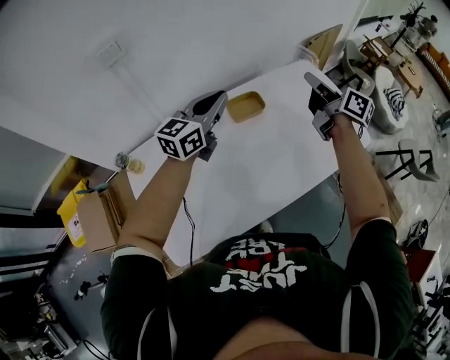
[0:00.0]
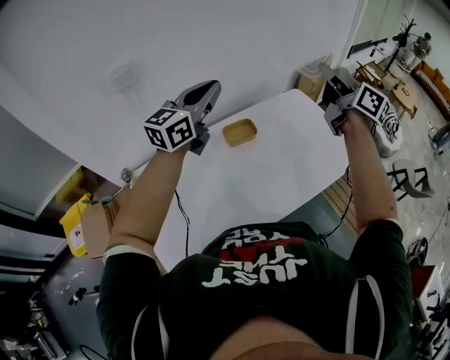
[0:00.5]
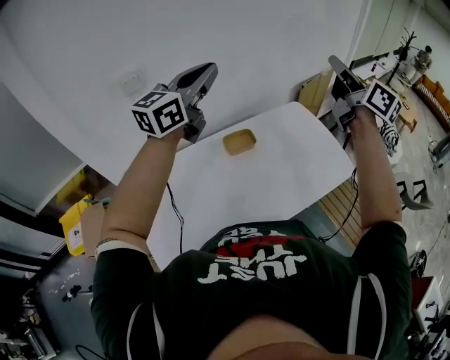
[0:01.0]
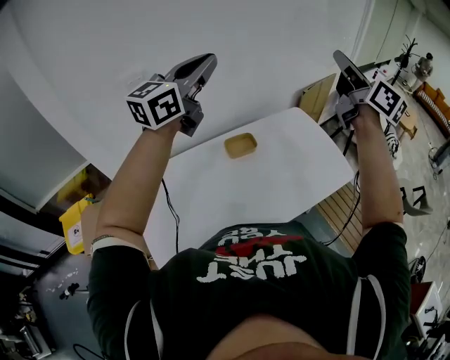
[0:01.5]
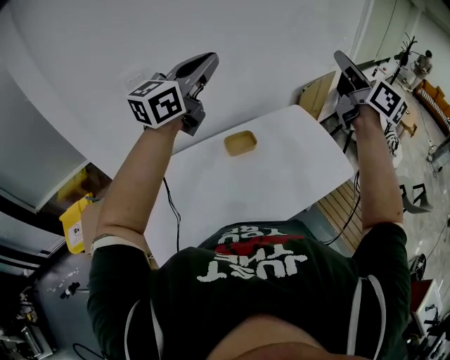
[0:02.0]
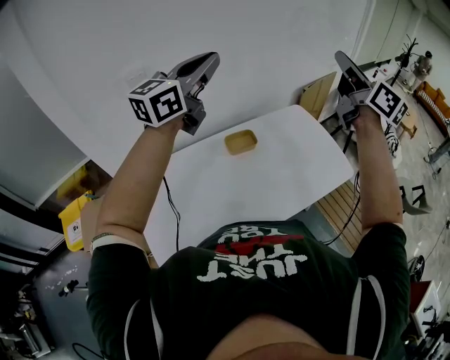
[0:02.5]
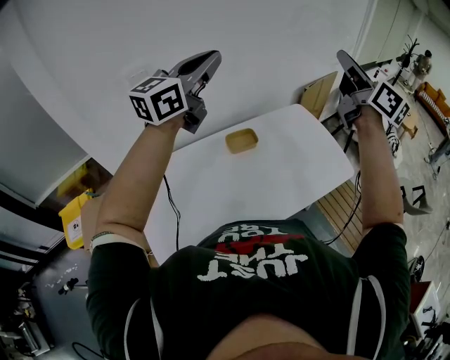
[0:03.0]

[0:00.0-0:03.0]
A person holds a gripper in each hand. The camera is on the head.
0:00.0 to 0:01.5: Both grippers travel together upward, approximately 30 cm. The right gripper swivels about 30 degrees.
0:01.5 to 0:03.0: Both grippers stay about where they are.

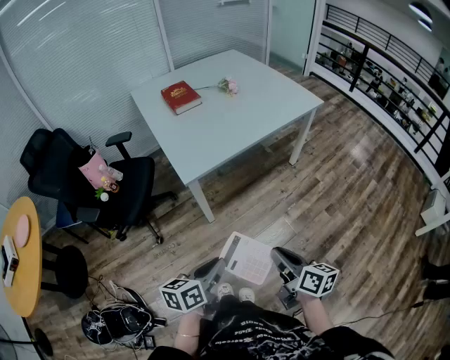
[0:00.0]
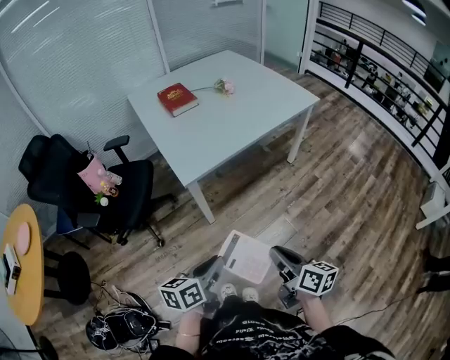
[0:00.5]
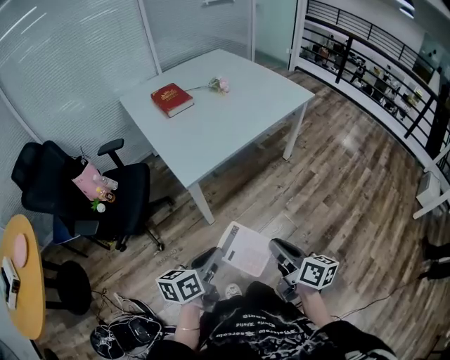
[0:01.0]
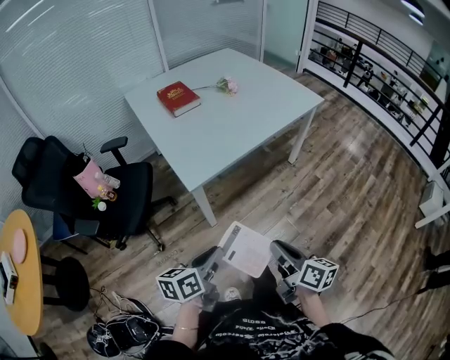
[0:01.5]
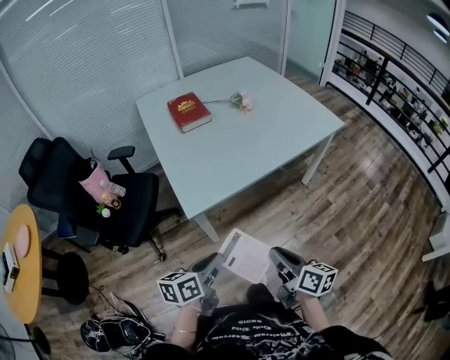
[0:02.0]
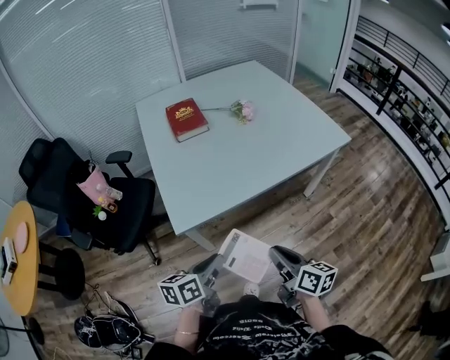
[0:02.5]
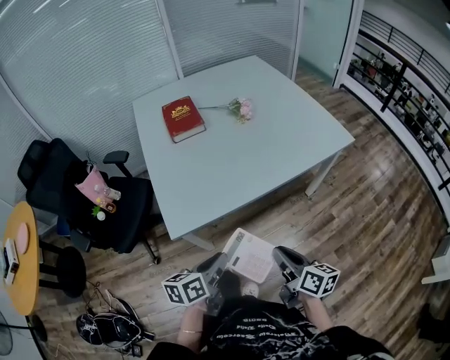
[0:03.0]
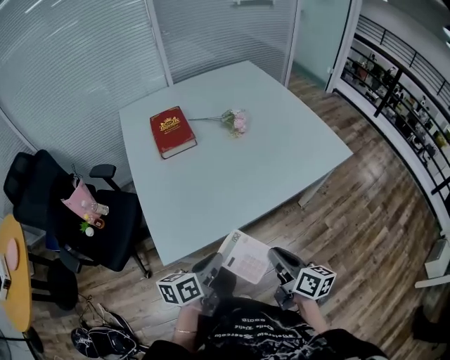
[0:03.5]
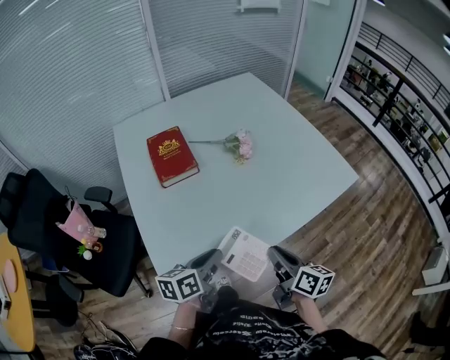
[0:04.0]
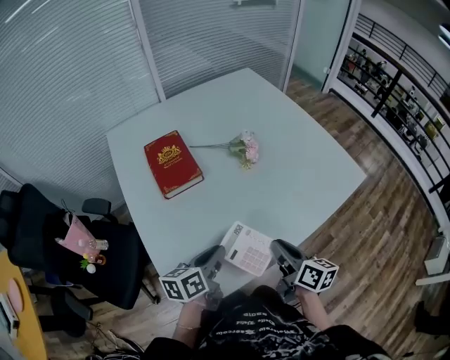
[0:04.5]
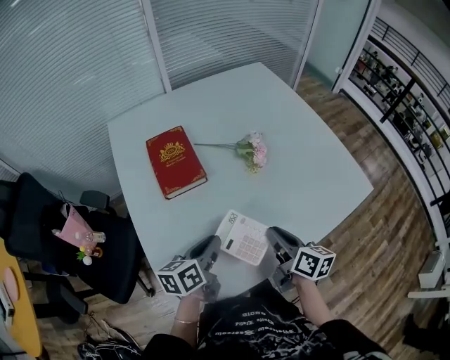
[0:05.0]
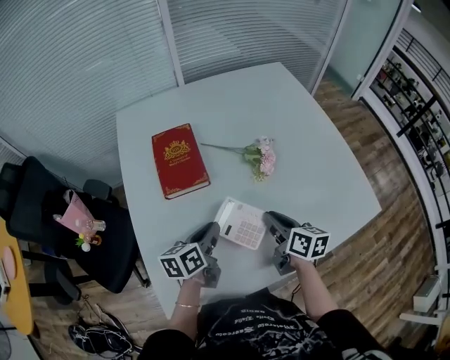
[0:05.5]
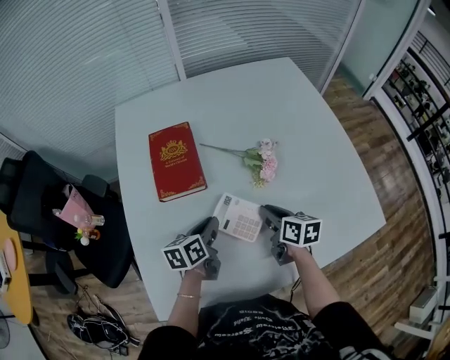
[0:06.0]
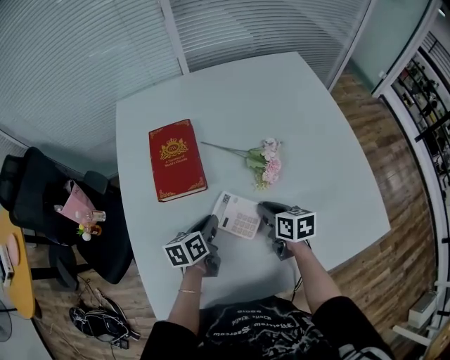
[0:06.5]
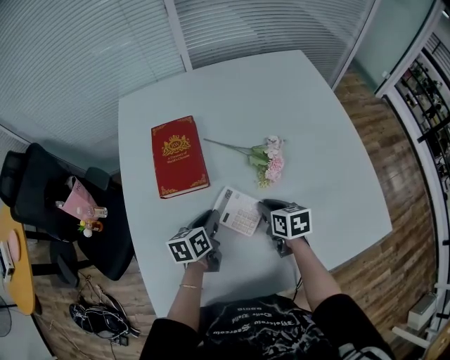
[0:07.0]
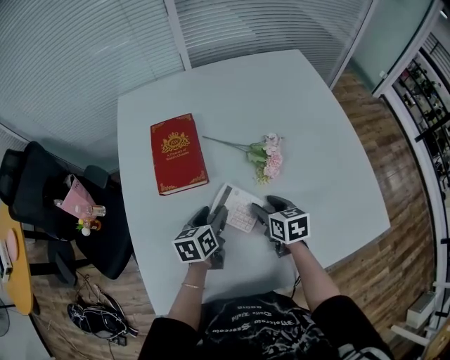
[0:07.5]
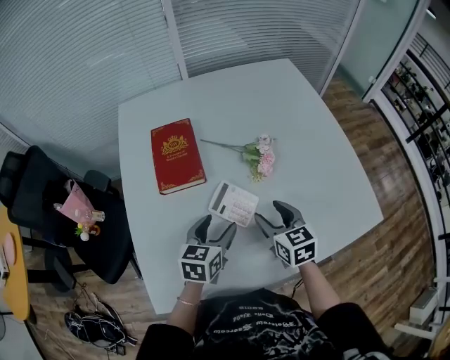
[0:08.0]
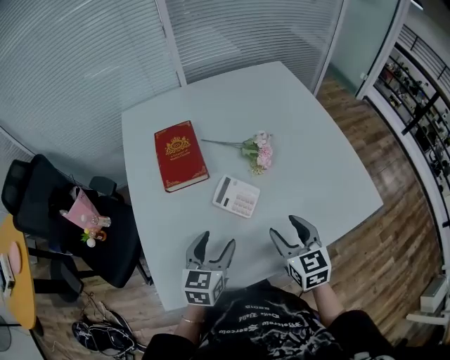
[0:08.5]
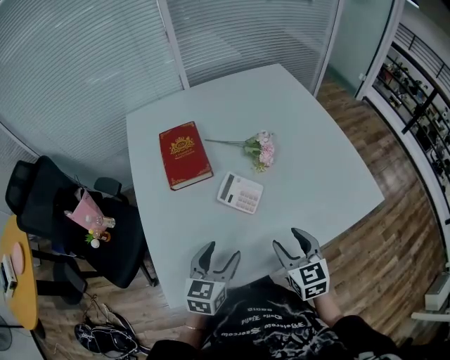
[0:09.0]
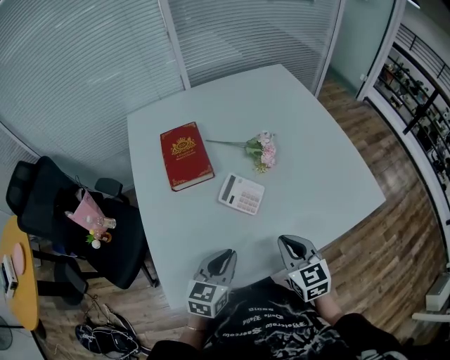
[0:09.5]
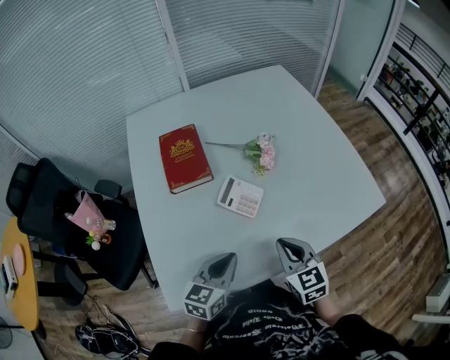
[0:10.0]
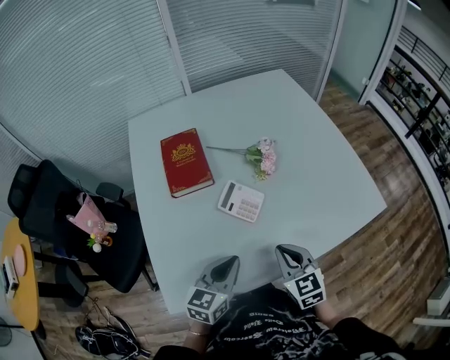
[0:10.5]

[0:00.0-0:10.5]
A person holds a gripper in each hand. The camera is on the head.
0:00.0 to 0:02.0: Both grippers travel together forward, about 20 cm.
0:02.0 to 0:04.0: The two grippers go about 35 cm forward.
0:04.0 to 0:06.5: Both grippers travel together forward, roughly 30 cm. The left gripper changes its angle by approximately 30 degrees. Meanwhile the right gripper changes its angle by approximately 40 degrees.
0:06.5 to 0:08.5: The two grippers go approximately 20 cm backward and upward. The right gripper swivels roughly 30 degrees, and opens; the left gripper swivels roughly 40 degrees, and opens up.
0:08.5 to 0:10.5: The two grippers go approximately 5 cm backward. The left gripper closes its fingers, while the right gripper closes its fingers.

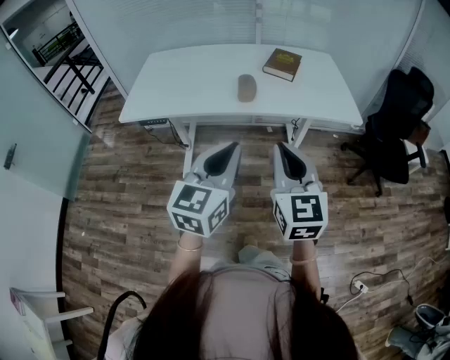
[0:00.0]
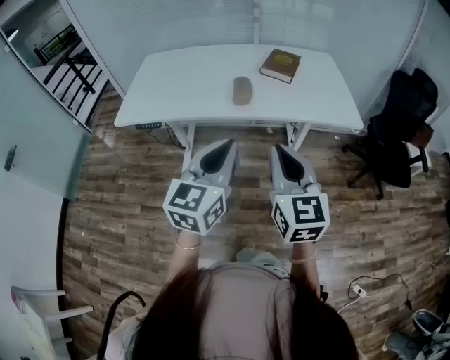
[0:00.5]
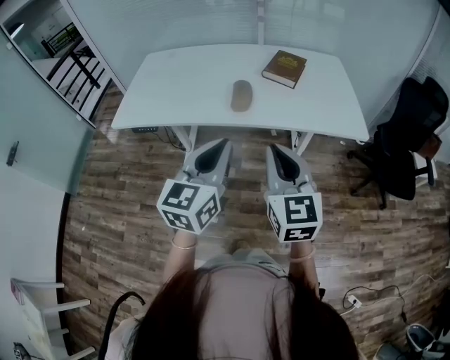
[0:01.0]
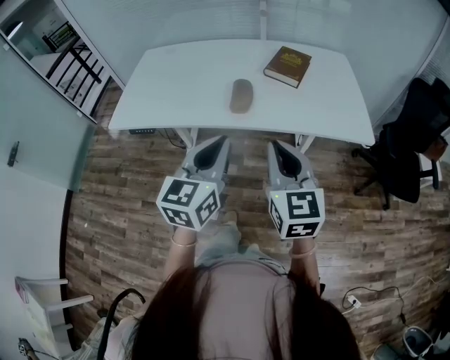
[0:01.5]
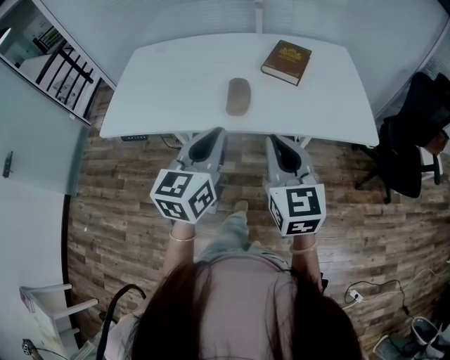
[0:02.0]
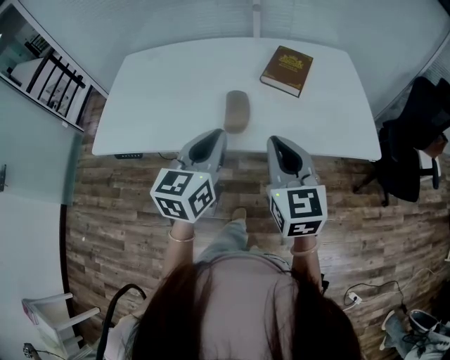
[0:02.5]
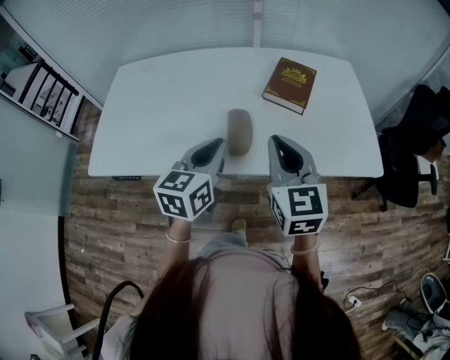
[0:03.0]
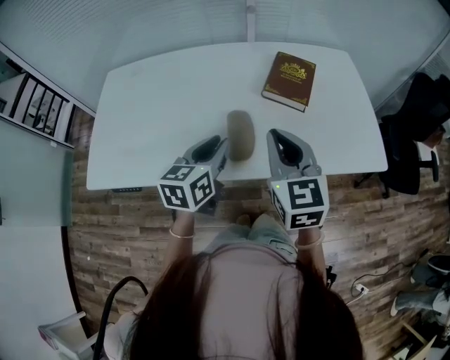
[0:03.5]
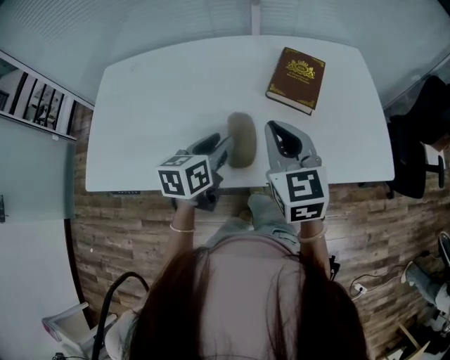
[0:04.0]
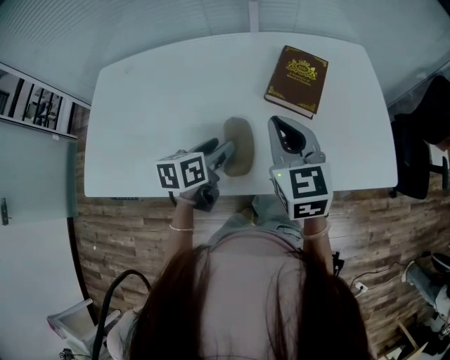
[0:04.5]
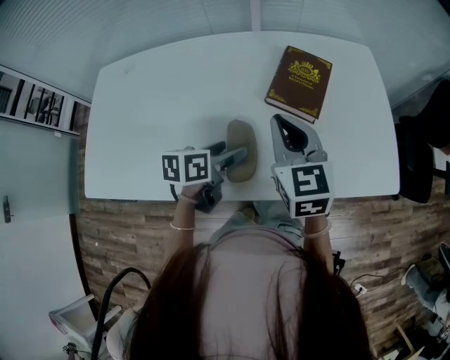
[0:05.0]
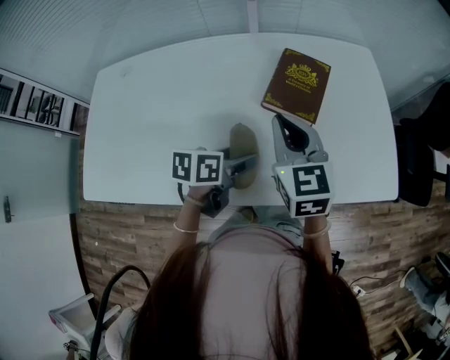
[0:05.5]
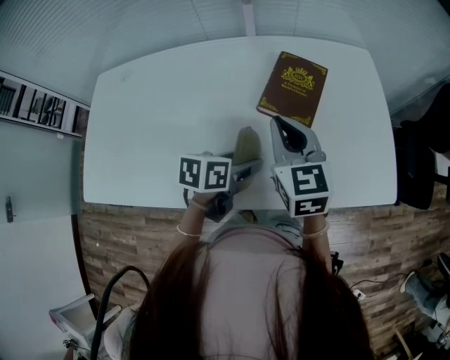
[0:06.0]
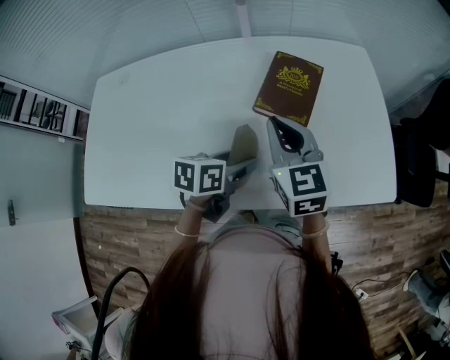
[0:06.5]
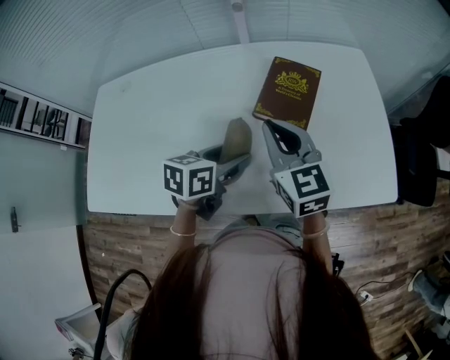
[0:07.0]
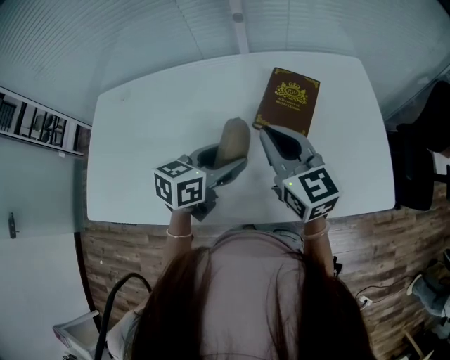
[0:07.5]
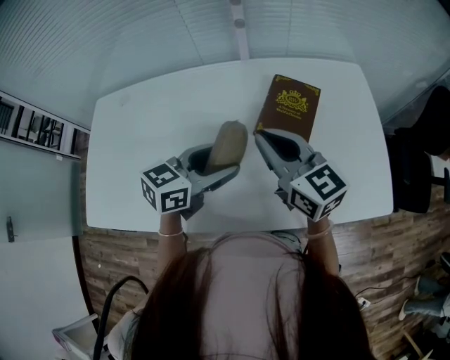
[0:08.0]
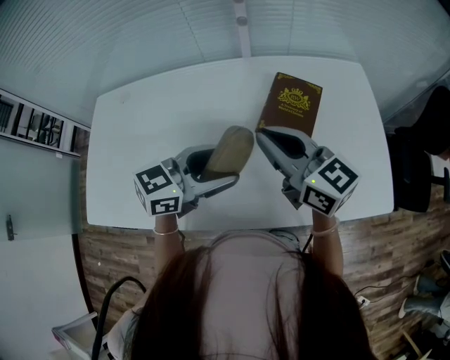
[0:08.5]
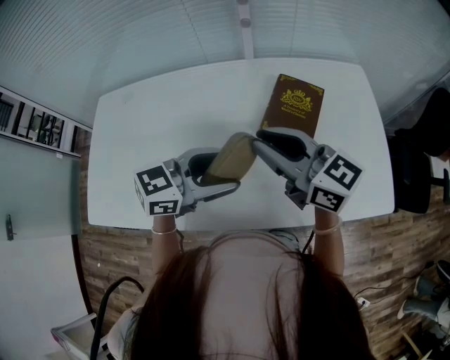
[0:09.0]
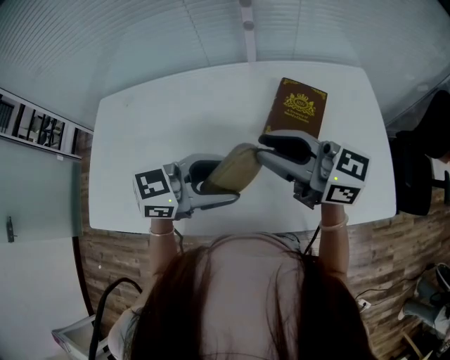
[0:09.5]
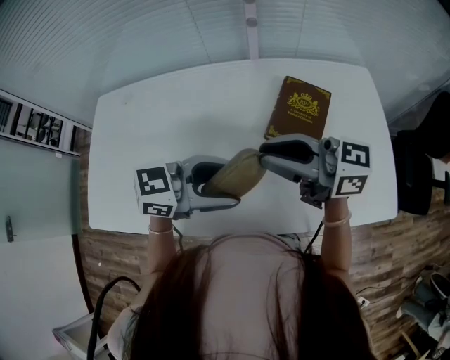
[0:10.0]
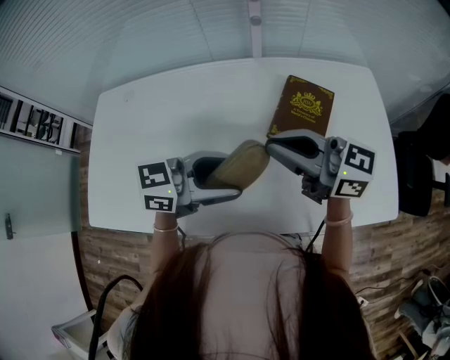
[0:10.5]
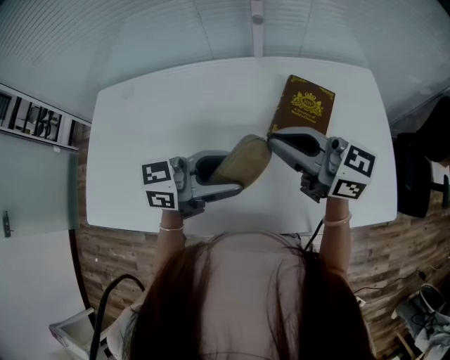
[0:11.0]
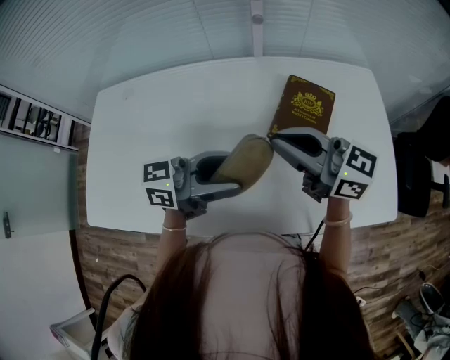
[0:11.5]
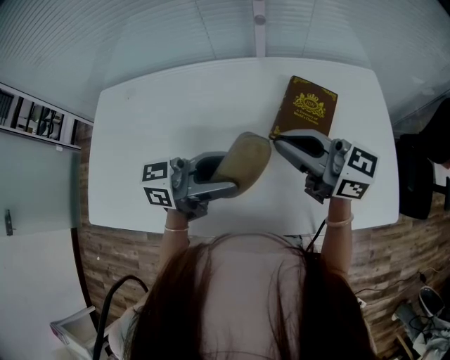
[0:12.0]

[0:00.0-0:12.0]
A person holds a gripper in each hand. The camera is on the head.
0:00.0 to 0:02.0: Both grippers travel together forward, about 20 cm.
0:02.0 to 0:04.0: The right gripper shifts about 25 cm forward; the left gripper travels forward and downward by some 30 cm, swivels some 30 degrees, and opens.
0:04.0 to 0:06.0: The left gripper moves to the right and downward, some 10 cm, rotates about 30 degrees, and opens its fingers. The right gripper moves forward, some 10 cm.
0:06.0 to 0:08.0: The right gripper changes place by roughly 5 cm, and swivels about 20 degrees. The left gripper moves upward, approximately 10 cm, and turns by roughly 40 degrees.
0:08.0 to 0:10.0: The right gripper changes its angle by roughly 40 degrees, while the left gripper changes place by some 5 cm, and rotates about 30 degrees.
0:10.0 to 0:12.0: The left gripper rotates about 30 degrees.

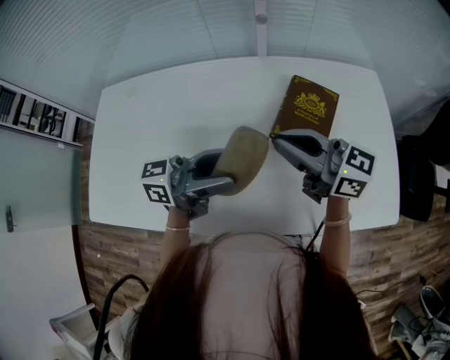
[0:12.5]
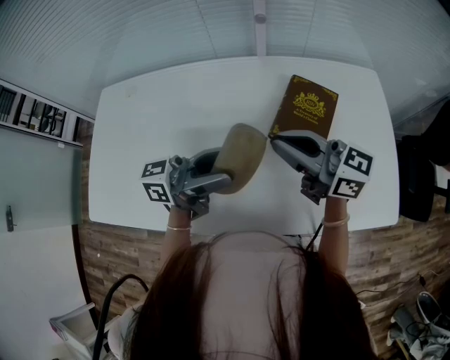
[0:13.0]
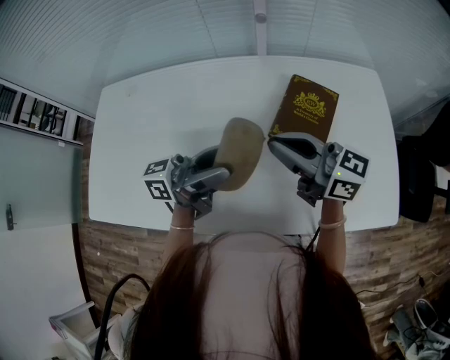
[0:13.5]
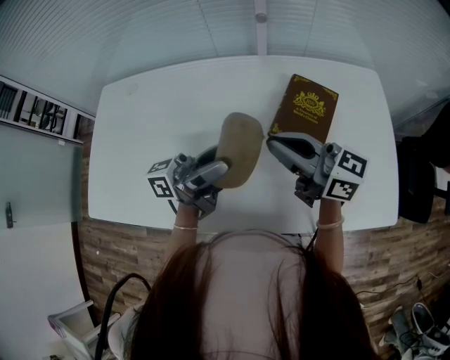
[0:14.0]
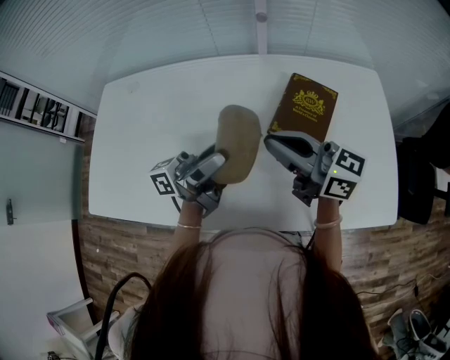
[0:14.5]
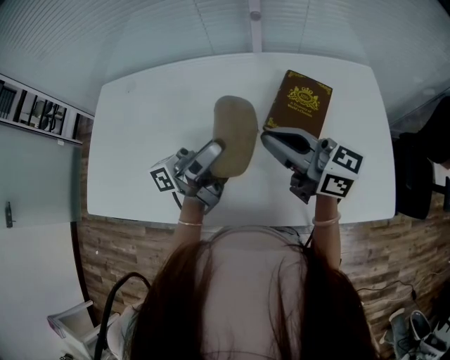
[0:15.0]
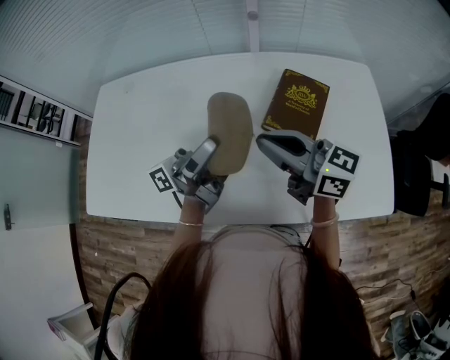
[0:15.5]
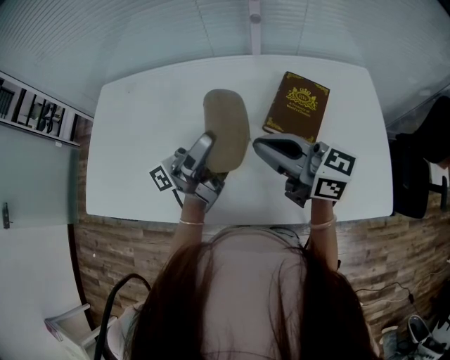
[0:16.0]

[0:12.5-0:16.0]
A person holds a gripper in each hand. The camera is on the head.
0:12.5 to 0:14.5: The left gripper rotates some 20 degrees.
0:14.5 to 0:16.0: The grippers move only a little.
